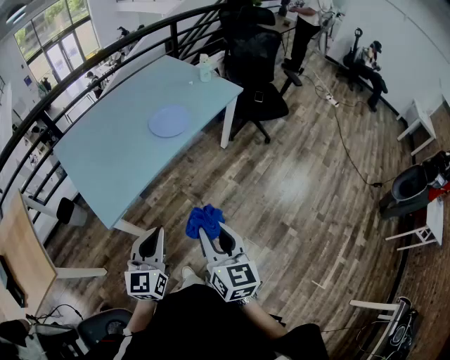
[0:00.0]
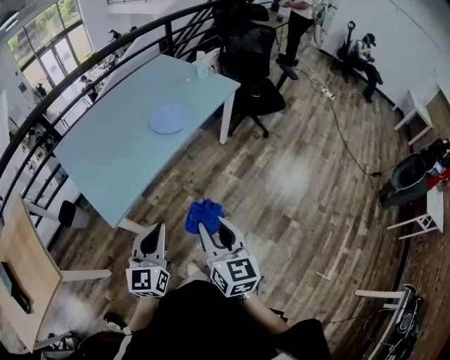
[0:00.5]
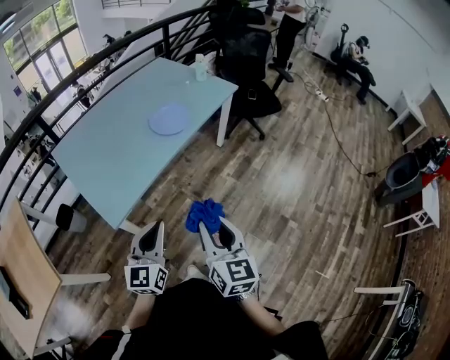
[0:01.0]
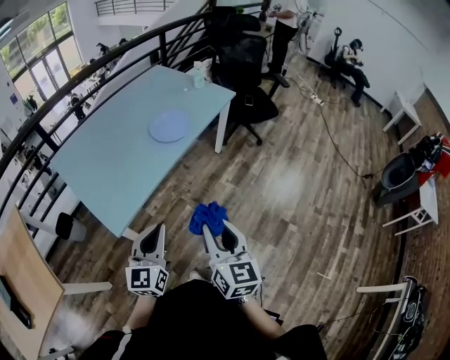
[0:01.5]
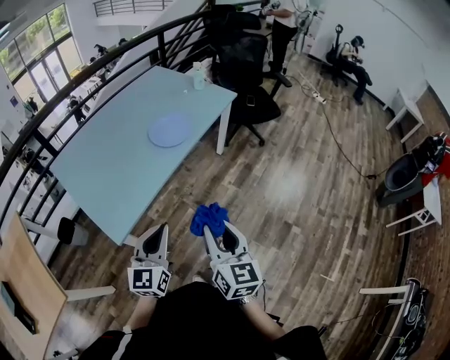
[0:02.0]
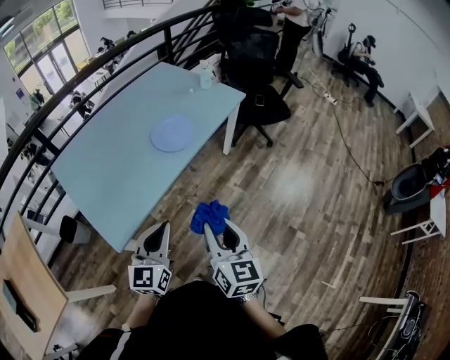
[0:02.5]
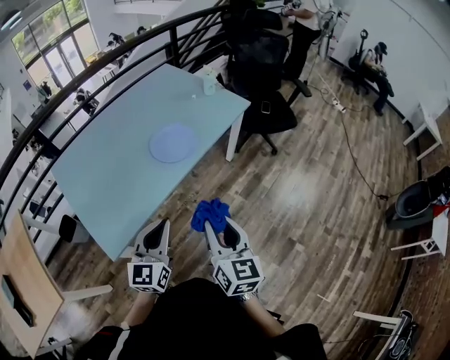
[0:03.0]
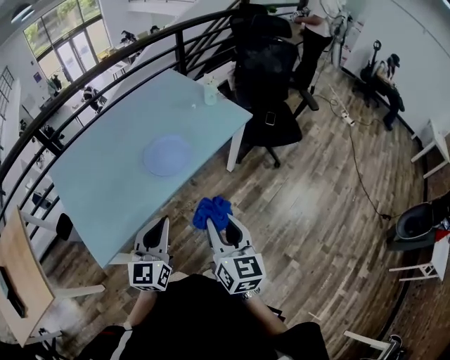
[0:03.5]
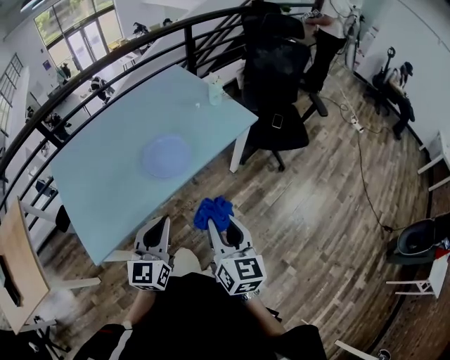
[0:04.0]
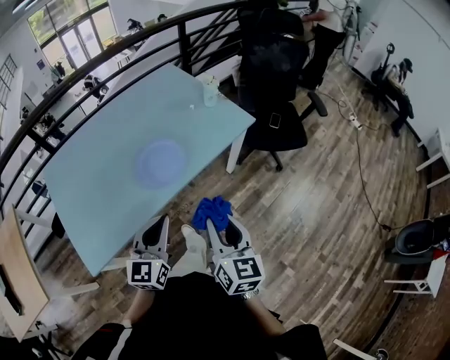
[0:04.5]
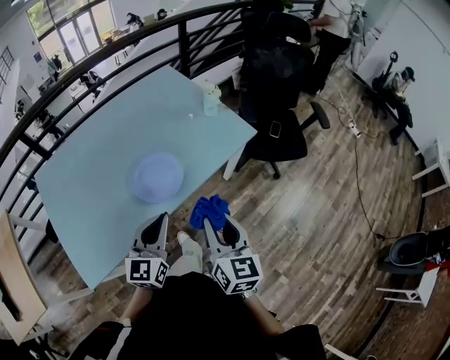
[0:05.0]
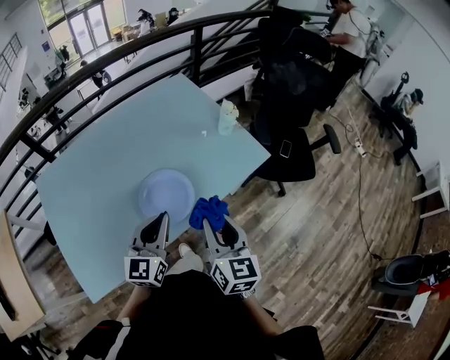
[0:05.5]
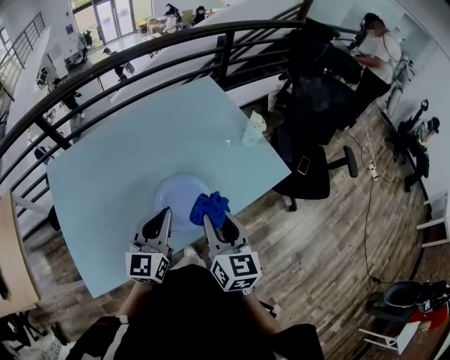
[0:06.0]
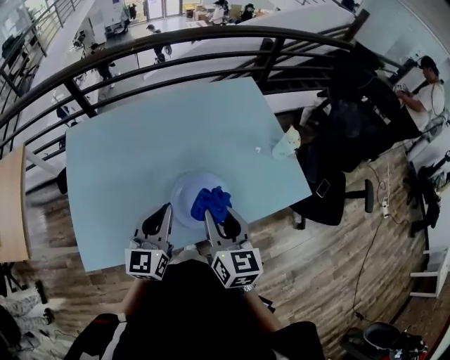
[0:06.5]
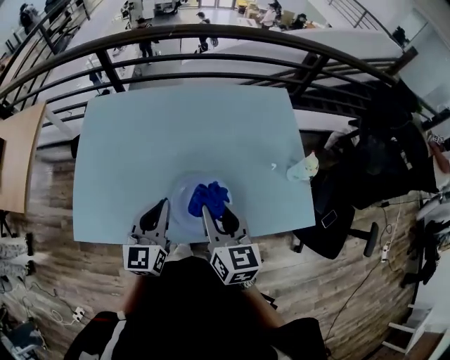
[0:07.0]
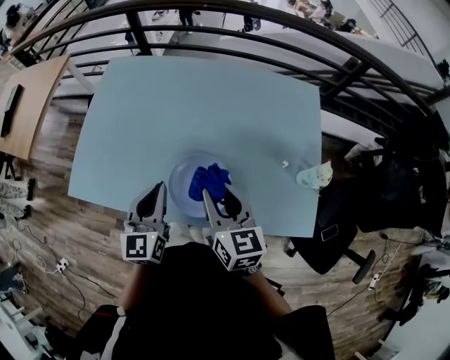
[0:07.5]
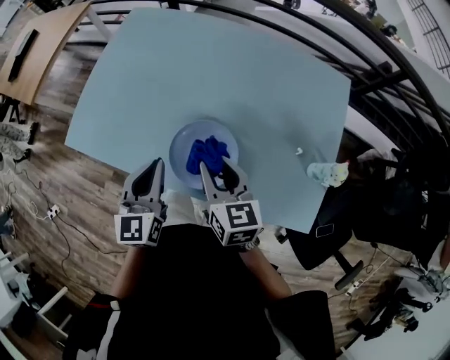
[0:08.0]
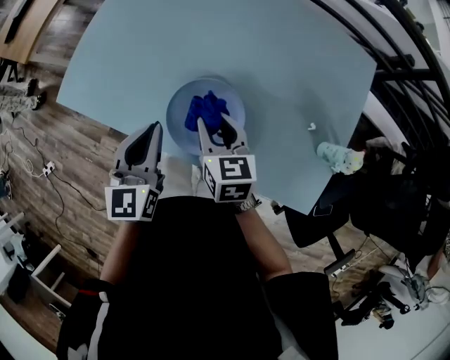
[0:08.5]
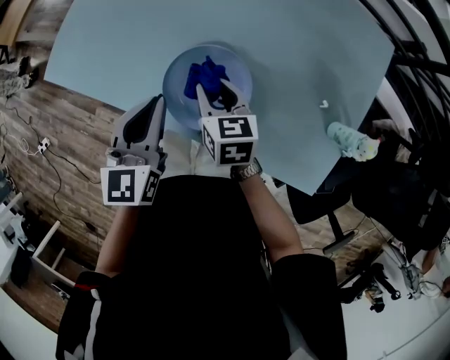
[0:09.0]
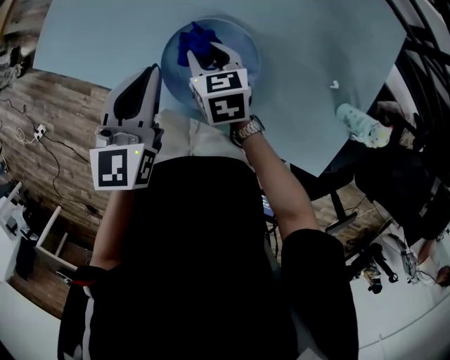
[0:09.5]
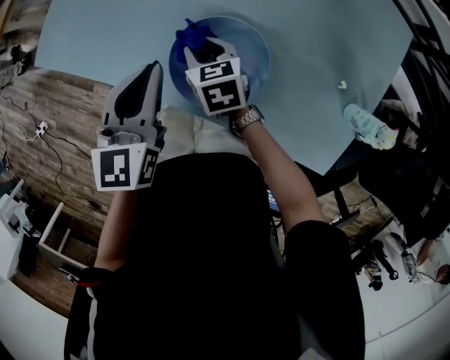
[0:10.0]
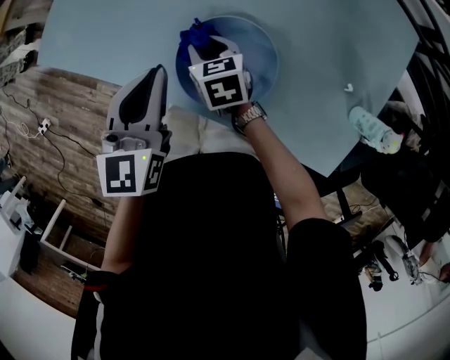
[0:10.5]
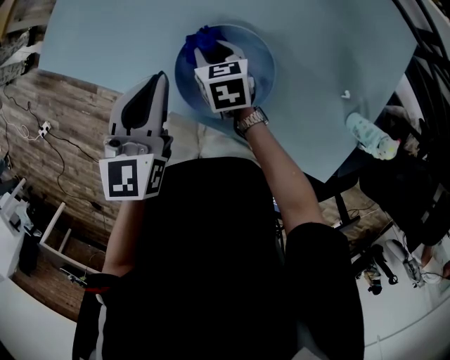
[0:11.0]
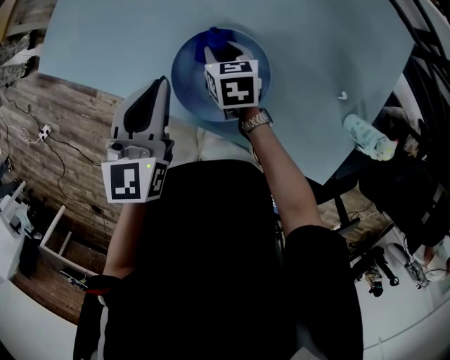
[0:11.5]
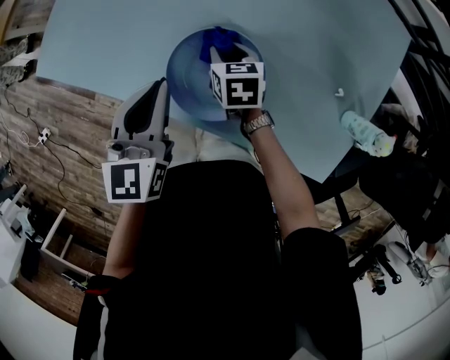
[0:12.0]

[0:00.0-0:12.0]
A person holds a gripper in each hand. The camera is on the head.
0:00.0 to 0:02.0: The right gripper ends up roughly 5 cm from where it was; the left gripper shifts by approximately 5 cm.
0:02.0 to 0:04.0: The two grippers go approximately 30 cm forward and to the right.
0:04.0 to 0:06.0: Both grippers move forward, approximately 30 cm.
0:06.0 to 0:08.0: The right gripper moves about 15 cm, and changes its angle by roughly 60 degrees; the left gripper goes roughly 5 cm downward, and rotates some 60 degrees.
0:08.0 to 0:10.0: The left gripper is displaced downward by some 10 cm, while the right gripper heads downward, covering some 20 cm, and rotates some 30 degrees.
0:10.0 to 0:12.0: The right gripper goes some 10 cm to the right.

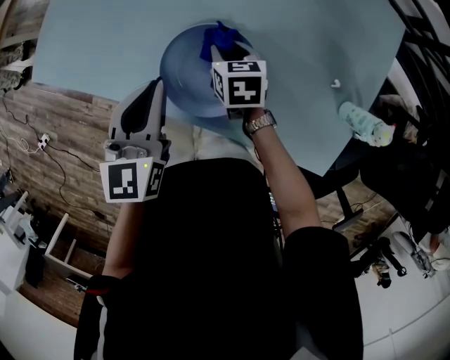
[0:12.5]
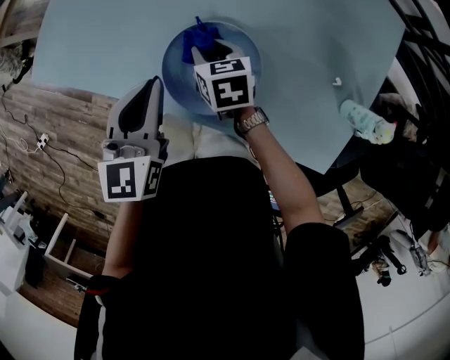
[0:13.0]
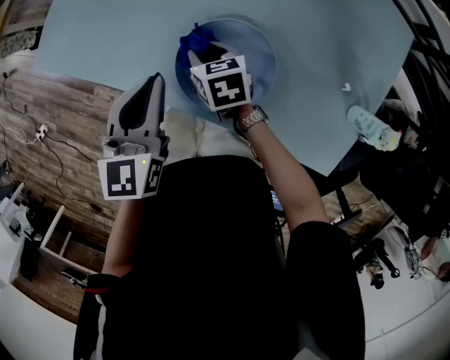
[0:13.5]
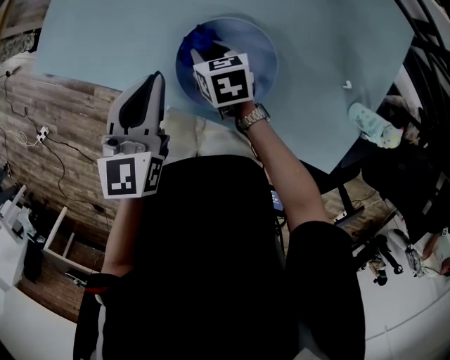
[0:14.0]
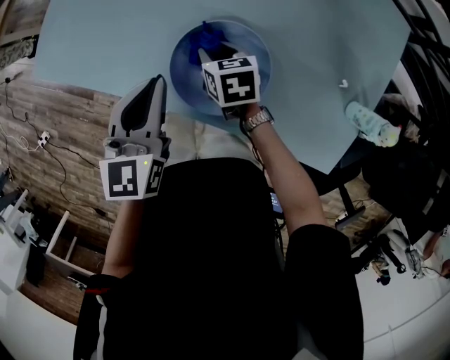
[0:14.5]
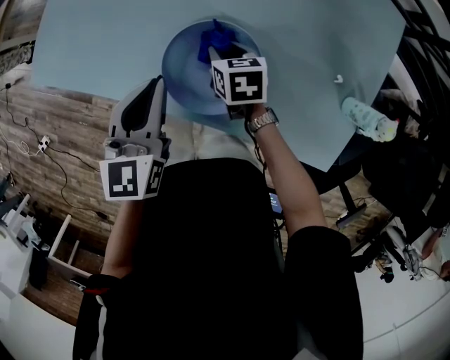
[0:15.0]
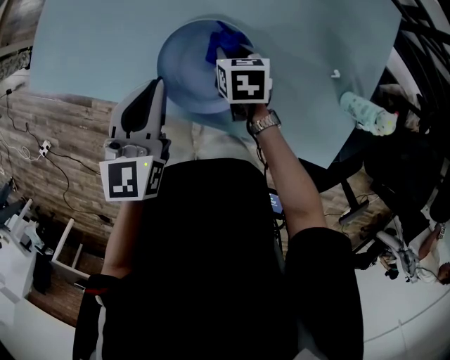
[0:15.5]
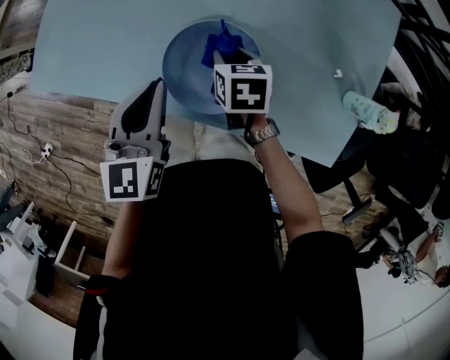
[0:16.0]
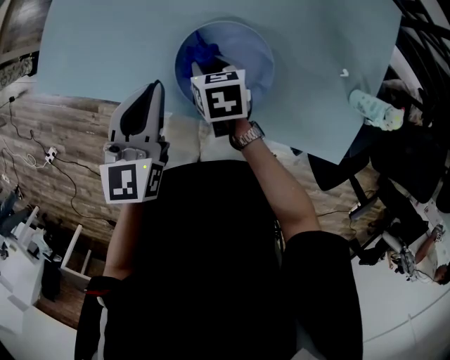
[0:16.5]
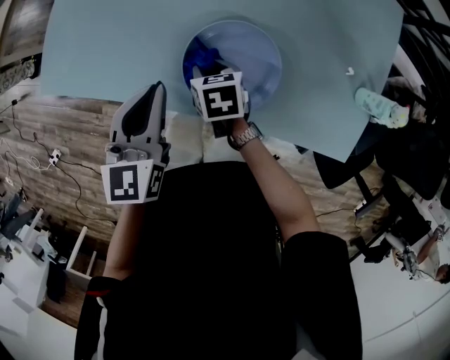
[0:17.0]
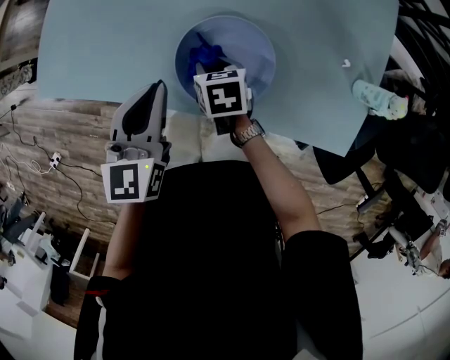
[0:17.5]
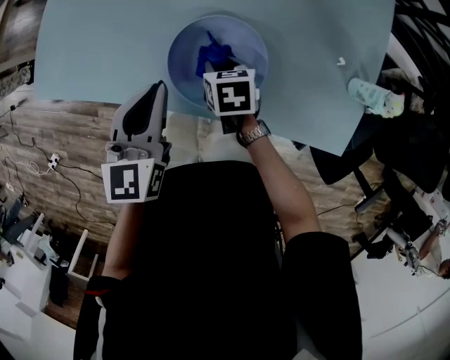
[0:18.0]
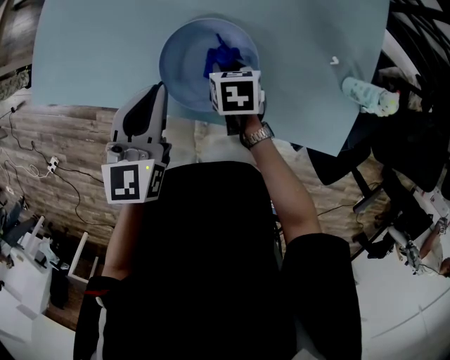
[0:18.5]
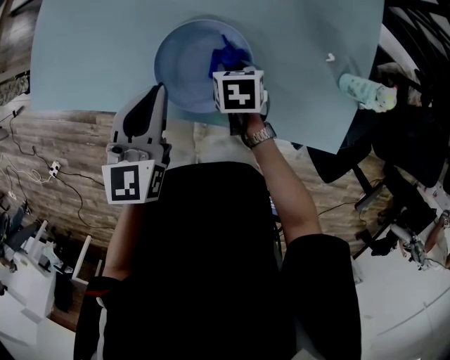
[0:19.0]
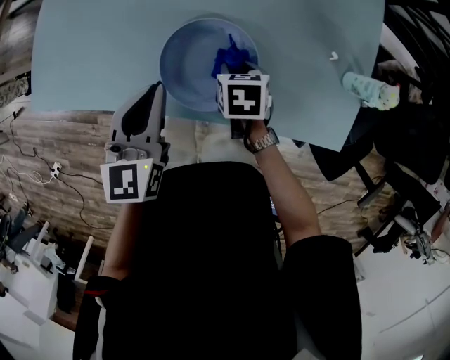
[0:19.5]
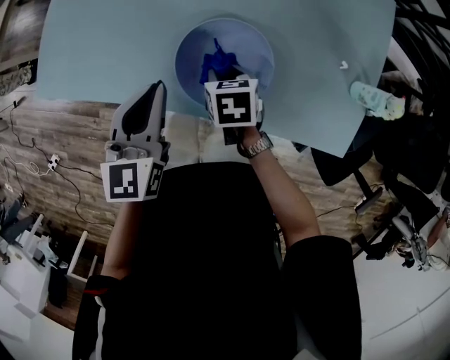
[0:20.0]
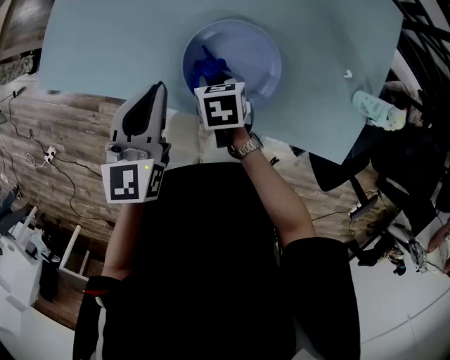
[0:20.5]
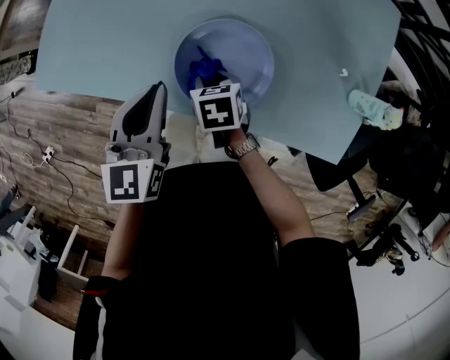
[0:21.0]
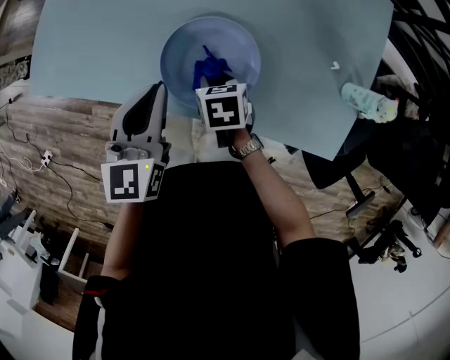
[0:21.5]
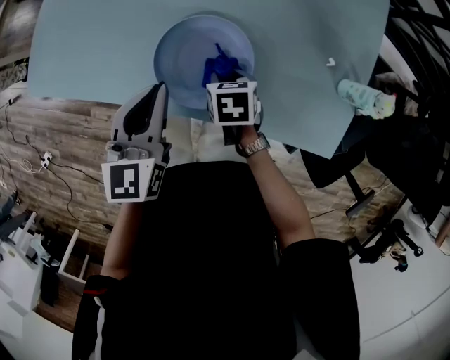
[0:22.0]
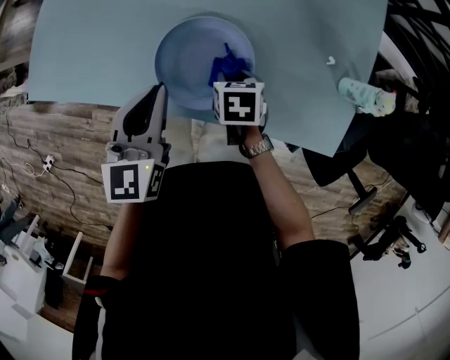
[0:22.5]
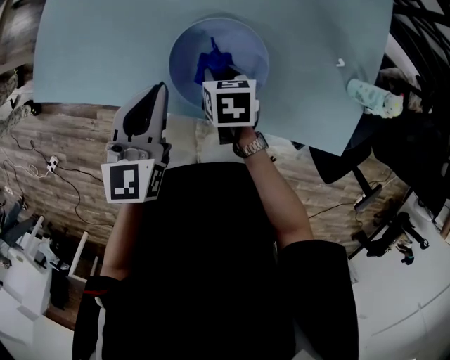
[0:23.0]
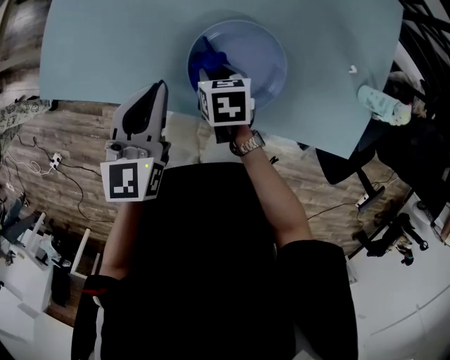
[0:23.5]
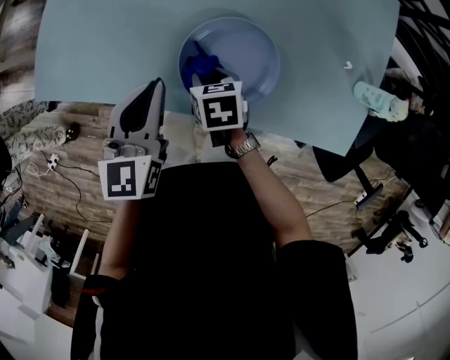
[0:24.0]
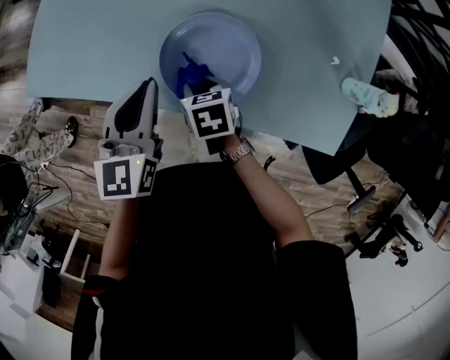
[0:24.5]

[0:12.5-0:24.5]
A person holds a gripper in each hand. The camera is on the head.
0:12.5 to 0:14.5: The right gripper moves to the left, roughly 5 cm.
0:14.5 to 0:16.5: The right gripper goes to the right and returns, about 10 cm each way.
0:16.5 to 0:18.5: The right gripper heads to the right, covering some 10 cm.
0:18.5 to 0:20.5: The left gripper moves to the left, about 5 cm; the right gripper goes some 10 cm to the left.
0:20.5 to 0:22.5: The left gripper moves to the right, approximately 5 cm; the right gripper heads to the right, covering some 10 cm.
0:22.5 to 0:24.5: The right gripper heads to the left, covering about 10 cm.

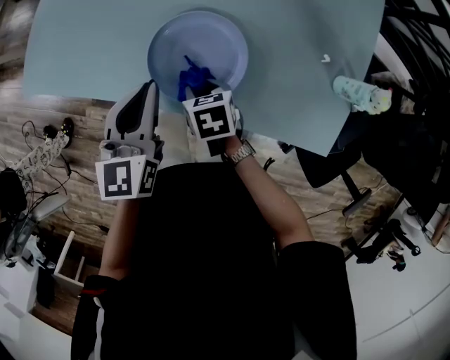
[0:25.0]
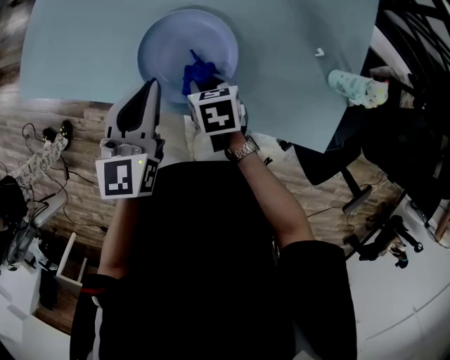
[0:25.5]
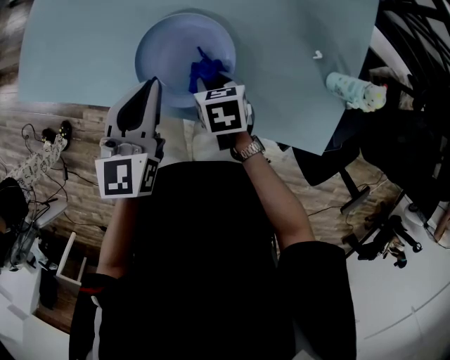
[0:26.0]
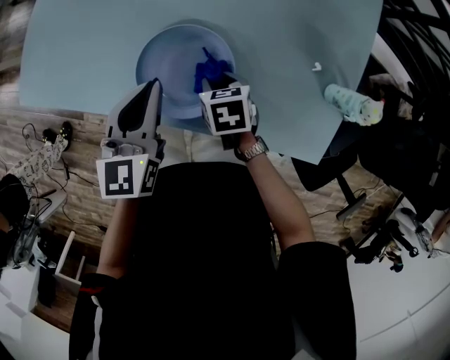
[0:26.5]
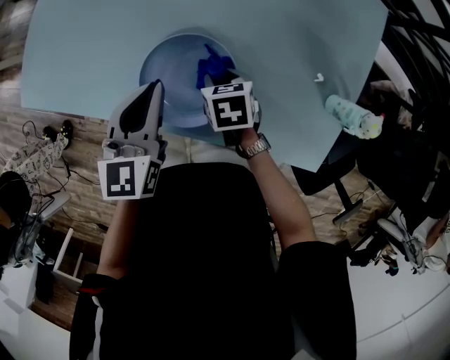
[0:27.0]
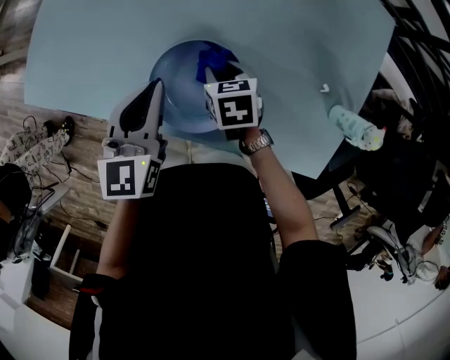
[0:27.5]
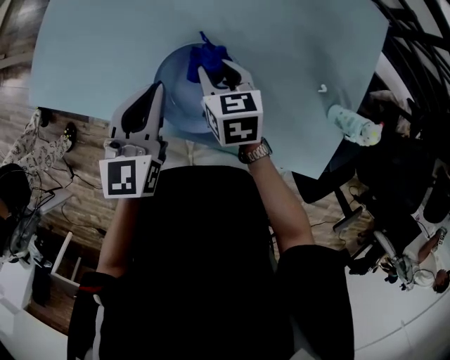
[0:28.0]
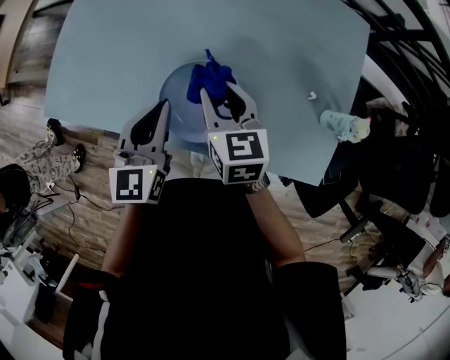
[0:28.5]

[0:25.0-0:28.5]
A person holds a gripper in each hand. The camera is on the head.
0:25.0 to 0:27.0: The left gripper travels forward by about 5 cm, while the right gripper goes roughly 10 cm to the right and forward.
0:27.0 to 0:28.5: The right gripper moves upward, approximately 15 cm, and tips its fingers upward by about 30 degrees.
